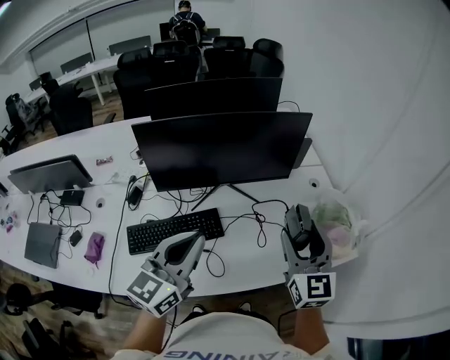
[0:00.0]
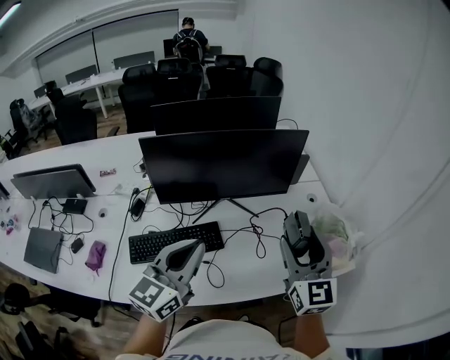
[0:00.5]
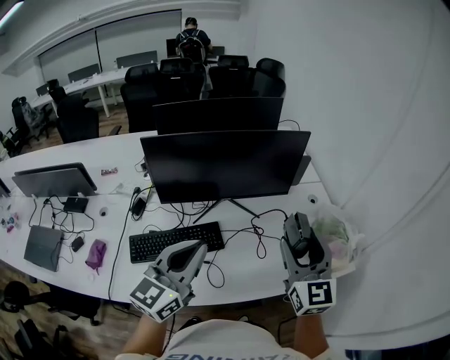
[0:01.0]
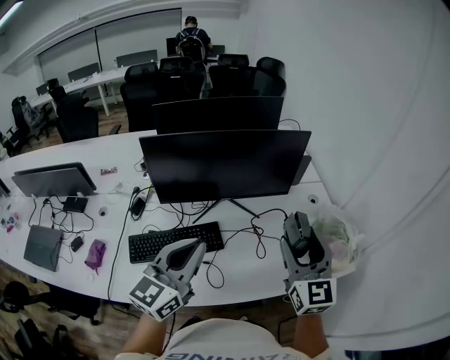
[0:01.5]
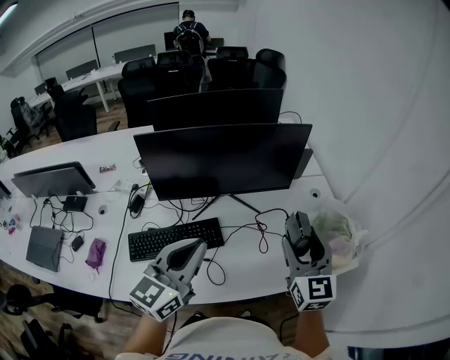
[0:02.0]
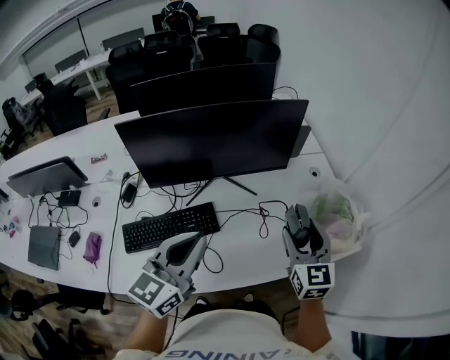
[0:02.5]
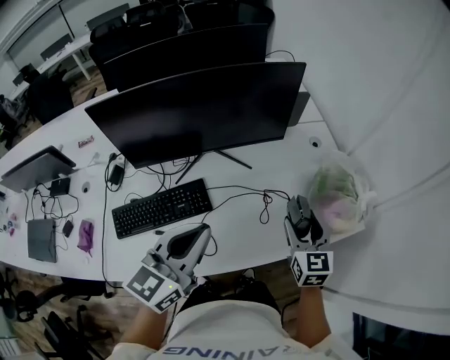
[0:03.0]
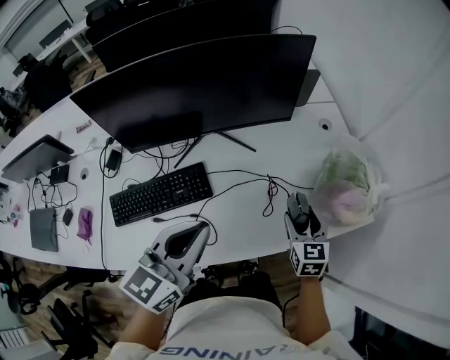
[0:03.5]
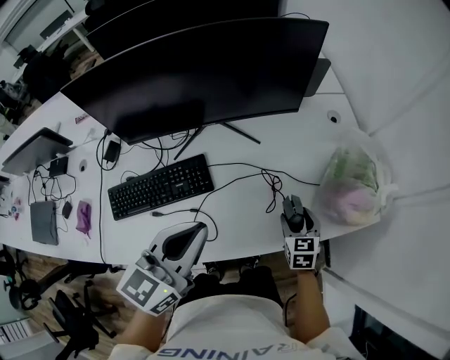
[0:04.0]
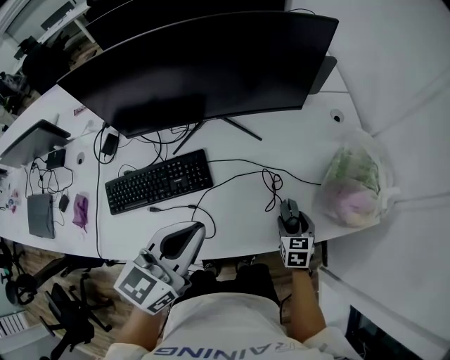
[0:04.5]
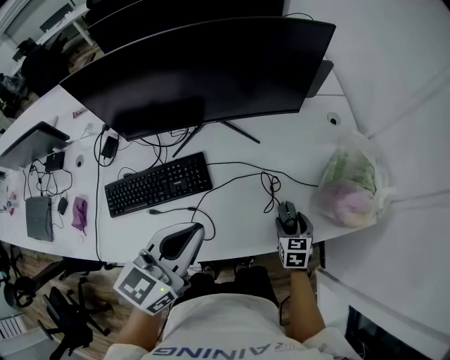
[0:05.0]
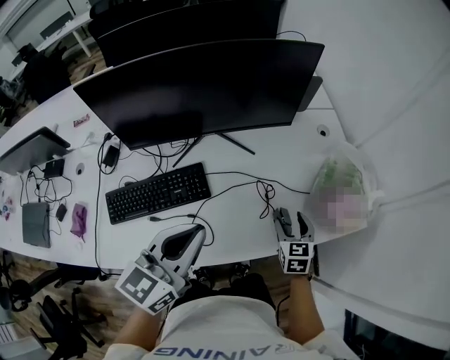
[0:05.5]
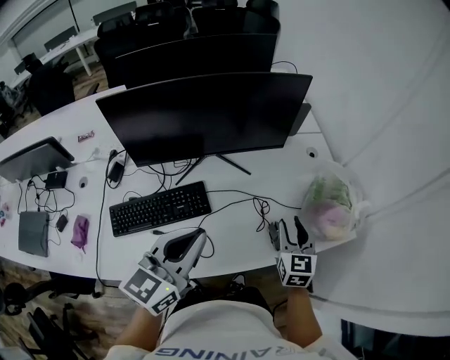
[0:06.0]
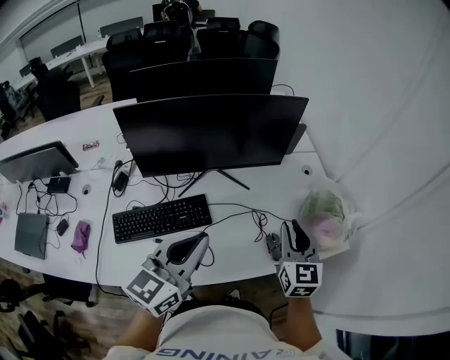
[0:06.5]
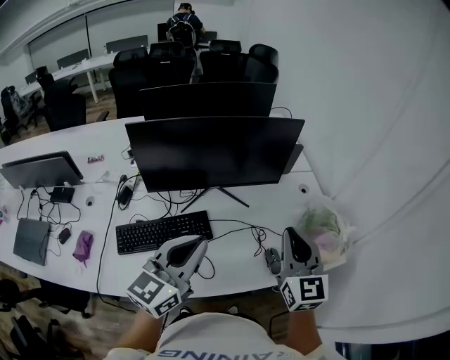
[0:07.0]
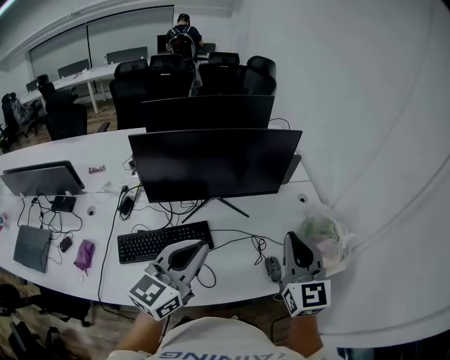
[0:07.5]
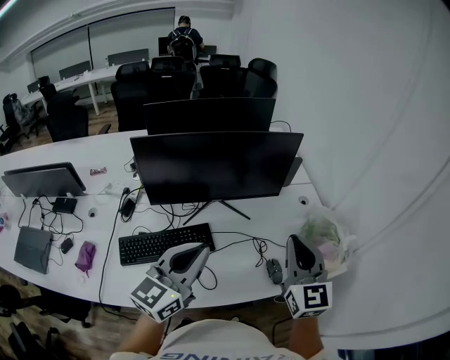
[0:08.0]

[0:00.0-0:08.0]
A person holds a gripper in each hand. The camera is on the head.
0:00.0 to 0:02.0: There are only small adjustments of the grippers.
0:02.0 to 0:04.0: The left gripper is displaced downward and to the right by approximately 10 cm; the right gripper goes some 35 cm downward, and angles its fingers downward, by approximately 40 degrees.
0:04.0 to 0:06.0: The left gripper changes place by about 5 cm. Meanwhile the right gripper moves upward, roughly 15 cm, swivels roughly 20 degrees, and closes.
0:06.0 to 0:08.0: The right gripper goes about 20 cm upward, swivels approximately 20 degrees, and closes its fingers, while the left gripper ends up some 5 cm from where it was.

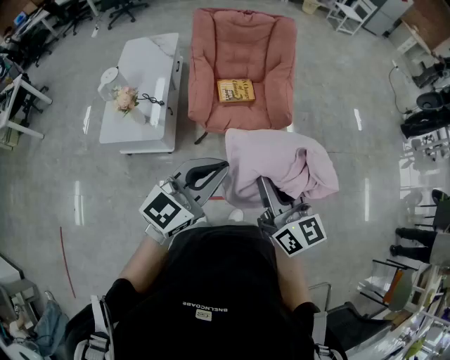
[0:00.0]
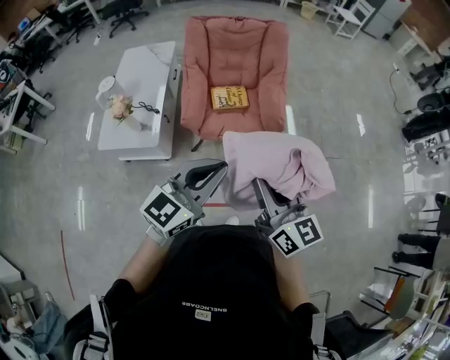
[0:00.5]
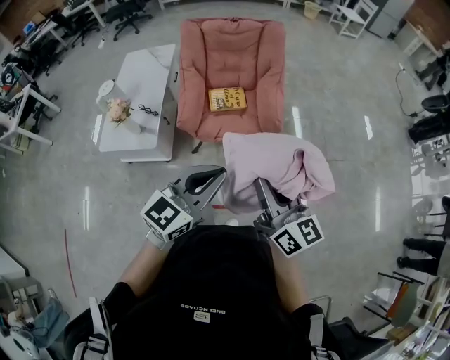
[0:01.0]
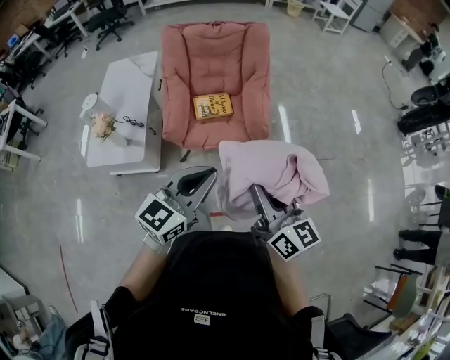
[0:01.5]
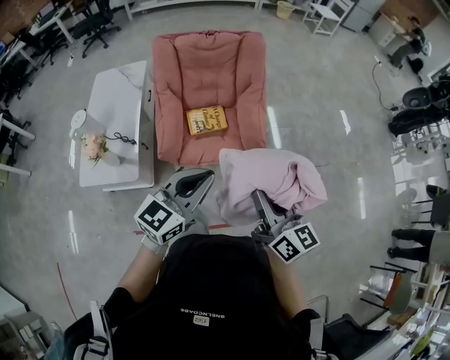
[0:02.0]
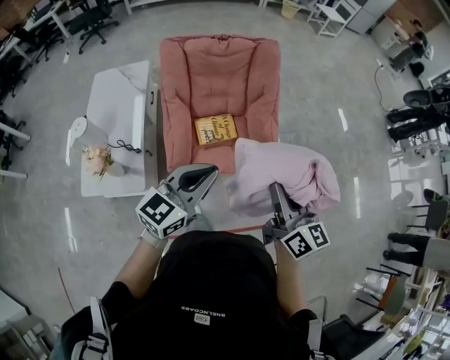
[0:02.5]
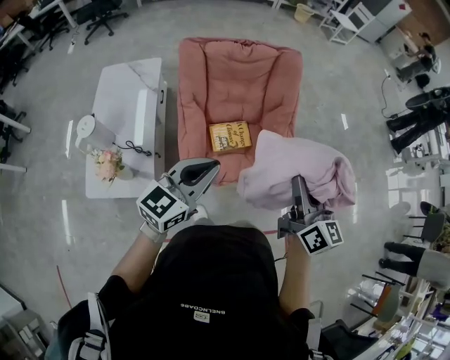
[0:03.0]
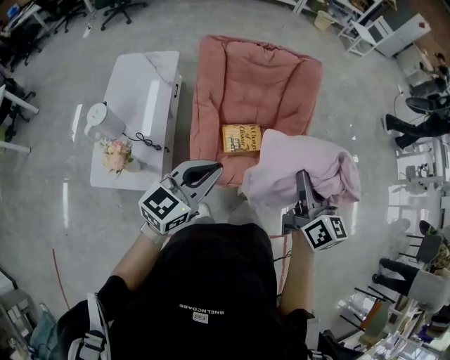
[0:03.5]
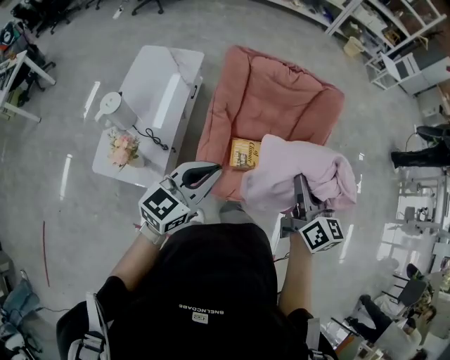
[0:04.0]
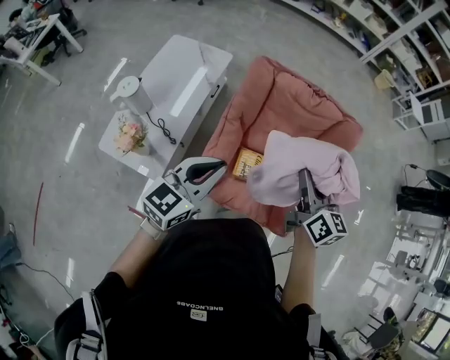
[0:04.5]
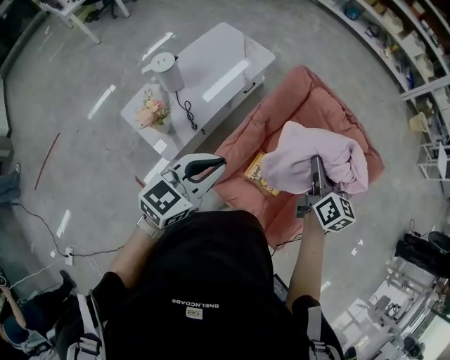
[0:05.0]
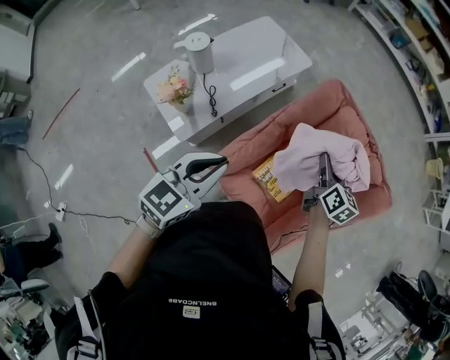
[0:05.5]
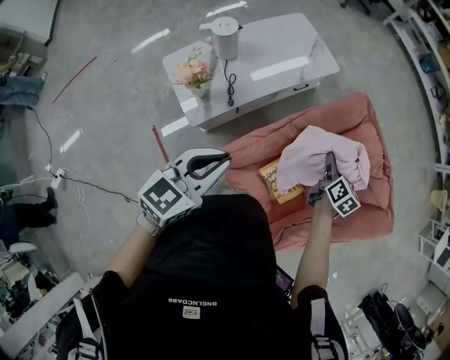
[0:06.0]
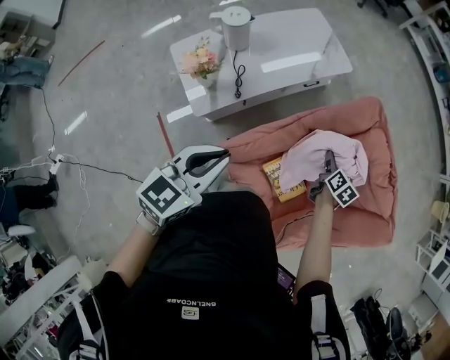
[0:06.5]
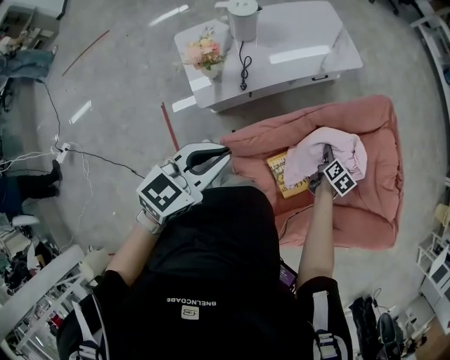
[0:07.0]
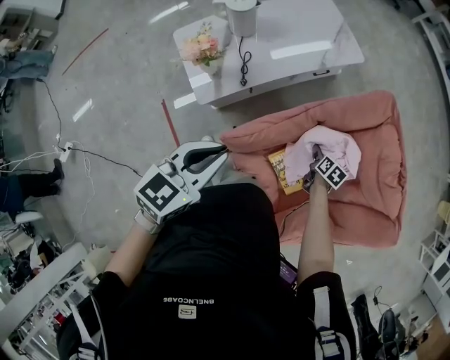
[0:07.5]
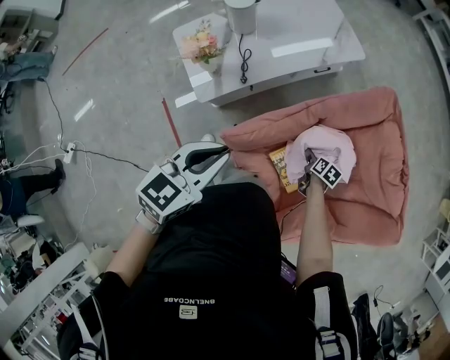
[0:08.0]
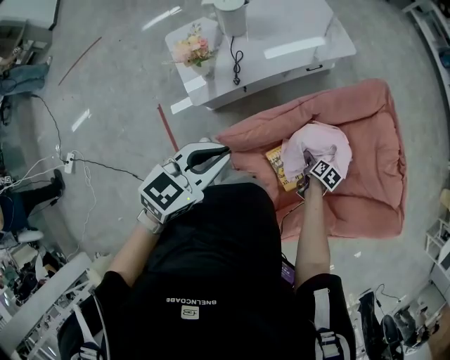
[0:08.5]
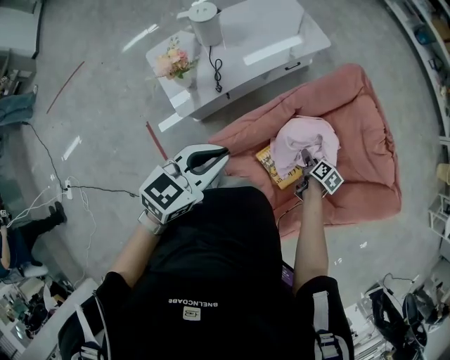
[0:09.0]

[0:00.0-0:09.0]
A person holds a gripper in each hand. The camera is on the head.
0:00.0 to 0:02.0: The right gripper moves forward and to the right, approximately 20 cm. Meanwhile the left gripper goes about 20 cm forward.
0:02.0 to 0:04.5: Both grippers are carried some 50 cm. The left gripper swivels about 20 degrees.
0:04.5 to 0:07.0: The left gripper is displaced downward by some 10 cm, and rotates about 40 degrees. The right gripper goes about 40 cm downward, and tilts its fingers some 40 degrees downward.
0:07.0 to 0:09.0: The left gripper shifts by about 5 cm, while the right gripper shifts about 10 cm backward, and opens up.

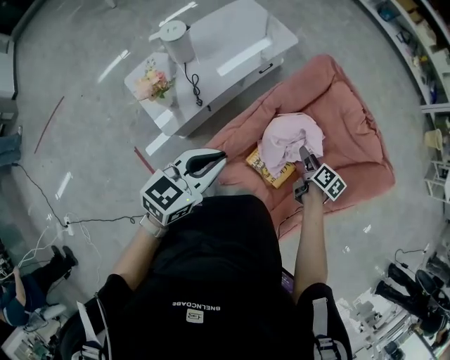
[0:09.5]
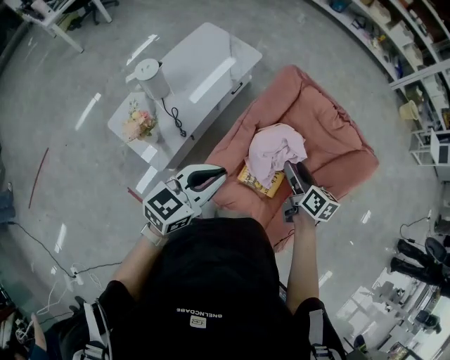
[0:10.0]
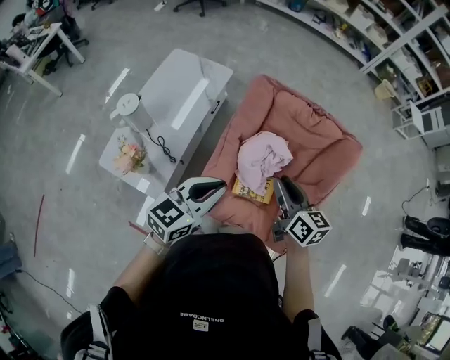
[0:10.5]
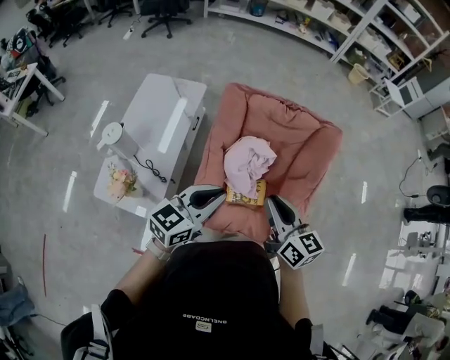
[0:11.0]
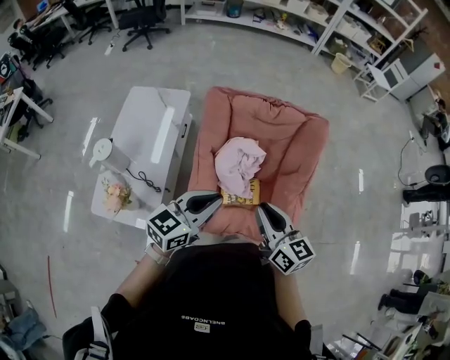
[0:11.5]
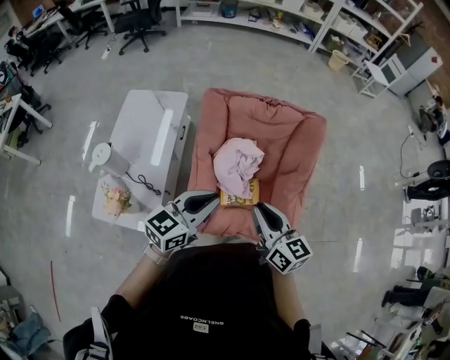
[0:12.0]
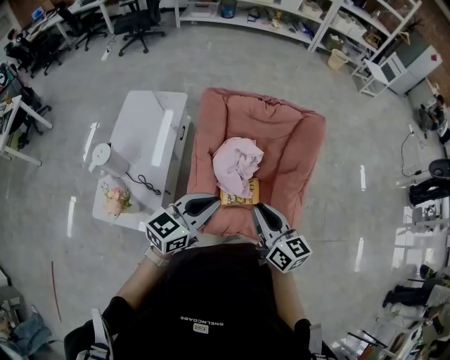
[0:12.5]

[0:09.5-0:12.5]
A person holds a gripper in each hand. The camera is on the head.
0:09.5 to 0:11.0: The right gripper moves upward, roughly 30 cm, tips its fingers upward by approximately 30 degrees, and closes, while the left gripper shifts some 10 cm upward, and rotates approximately 40 degrees.
0:11.0 to 0:12.5: The grippers move only a little.

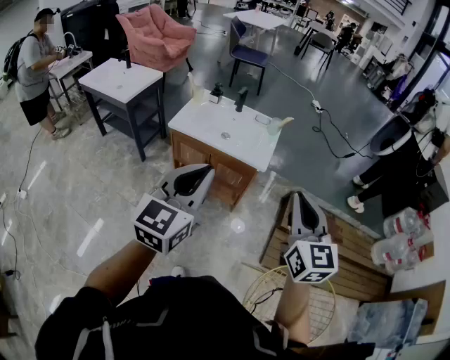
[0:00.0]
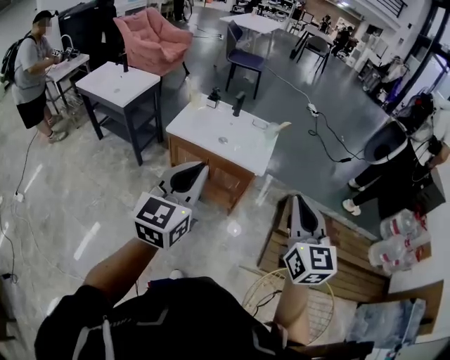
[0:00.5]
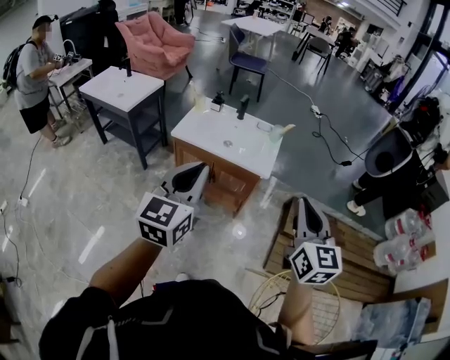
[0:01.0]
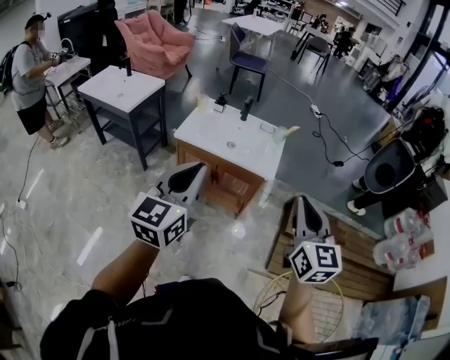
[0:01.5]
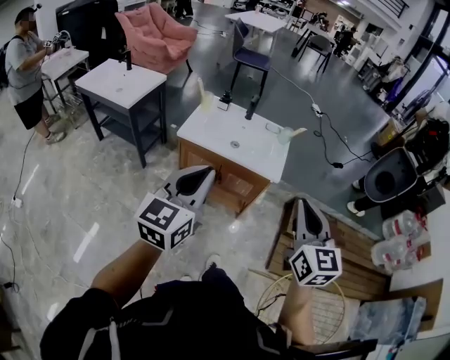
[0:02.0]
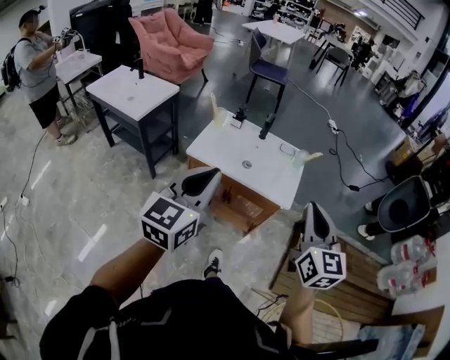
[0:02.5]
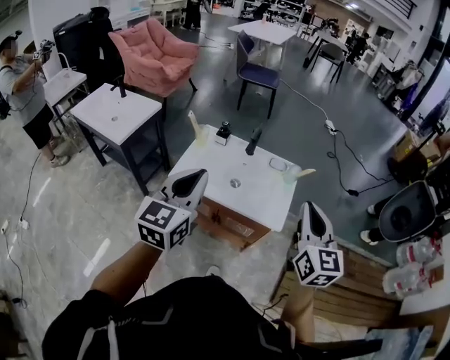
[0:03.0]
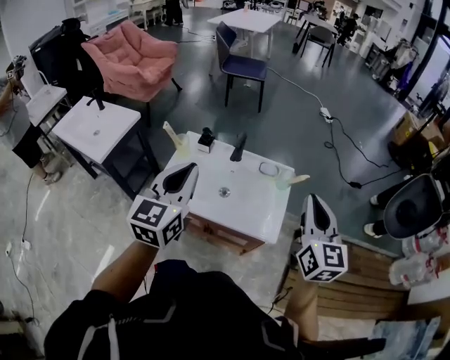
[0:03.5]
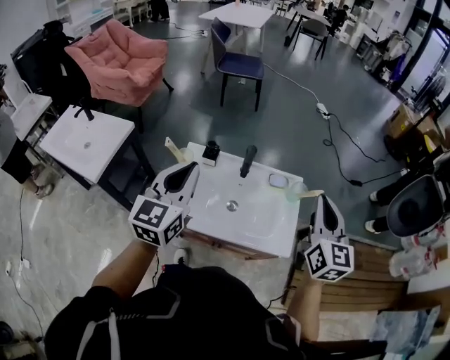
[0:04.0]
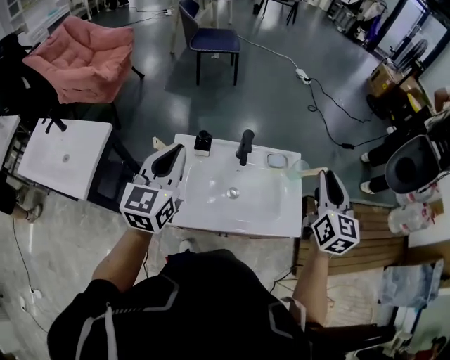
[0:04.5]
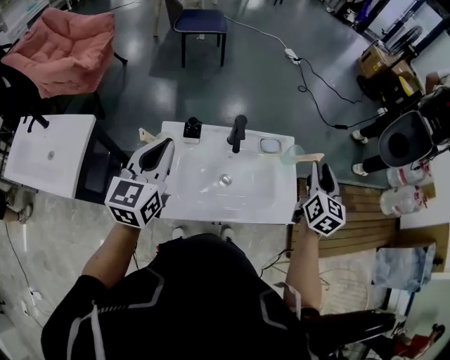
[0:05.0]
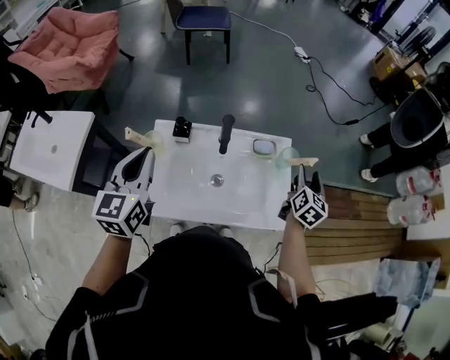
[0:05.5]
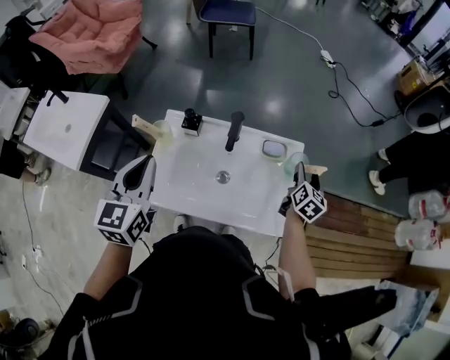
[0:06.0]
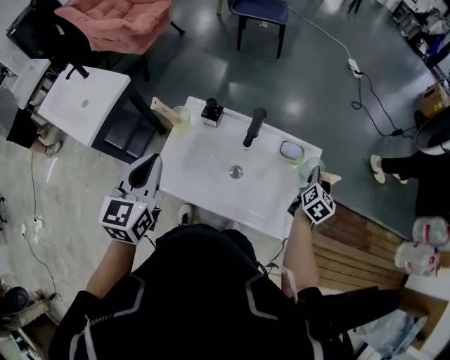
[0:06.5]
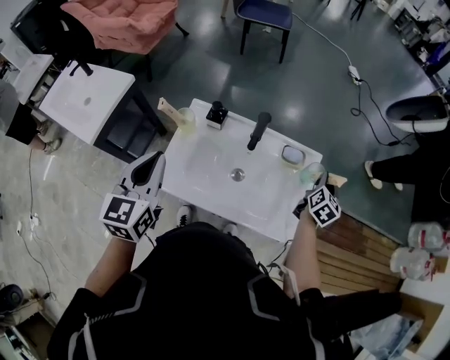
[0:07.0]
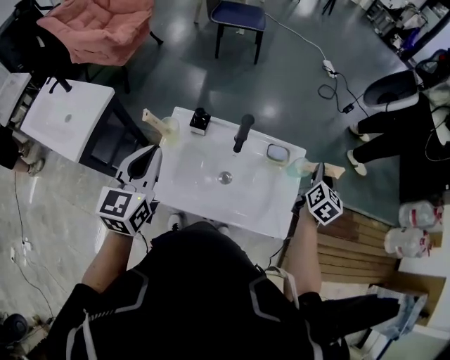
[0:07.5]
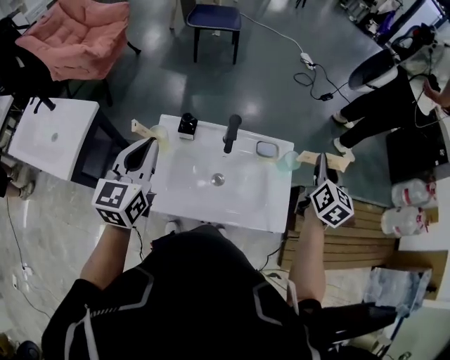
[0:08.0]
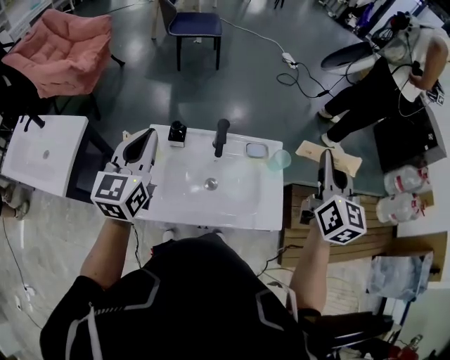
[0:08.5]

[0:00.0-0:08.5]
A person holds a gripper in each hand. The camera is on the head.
0:00.0 to 0:02.0: Both grippers move to the left, approximately 10 cm.
0:02.0 to 0:04.0: Both grippers are carried forward, roughly 50 cm.
0:04.0 to 0:06.5: The left gripper is displaced downward by approximately 10 cm, and changes its angle by some 20 degrees. Meanwhile the right gripper heads downward and forward, covering some 35 cm, rotates some 30 degrees, and opens its fingers.
0:06.5 to 0:08.5: The right gripper travels upward by some 30 cm, swivels about 30 degrees, and closes its fingers, while the left gripper goes roughly 10 cm forward and upward, and turns by about 20 degrees.
